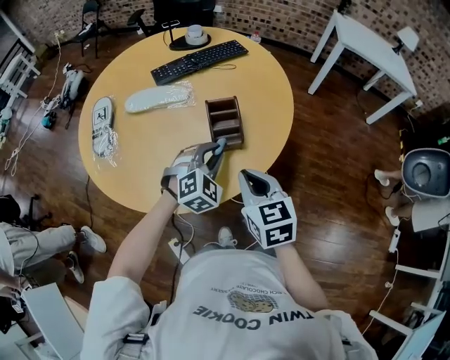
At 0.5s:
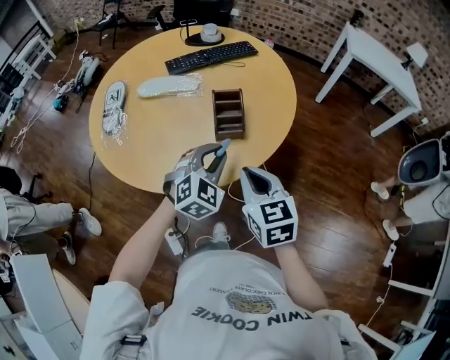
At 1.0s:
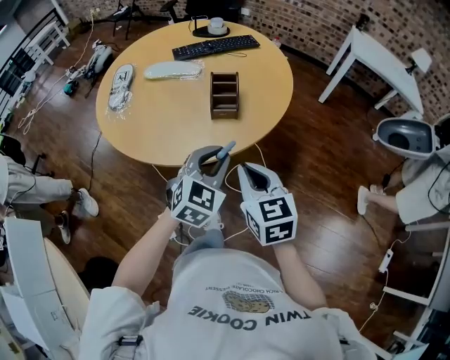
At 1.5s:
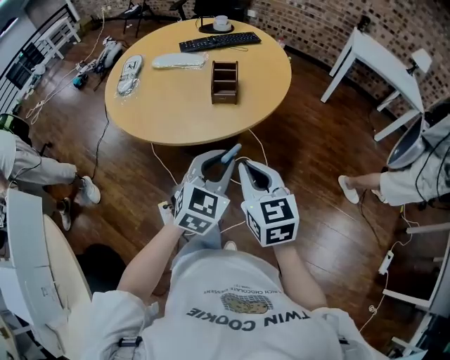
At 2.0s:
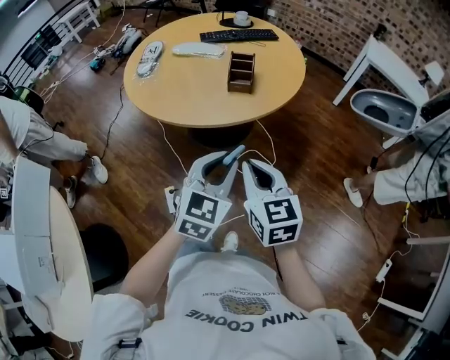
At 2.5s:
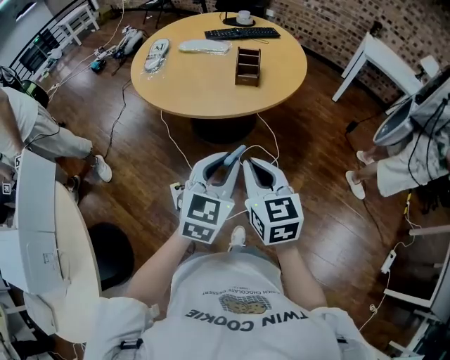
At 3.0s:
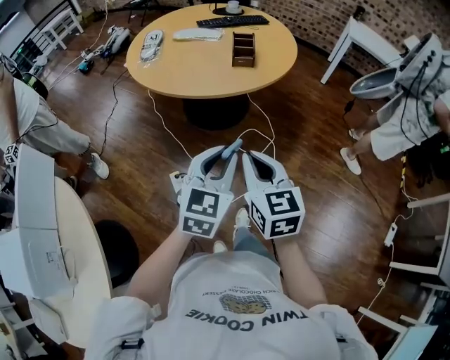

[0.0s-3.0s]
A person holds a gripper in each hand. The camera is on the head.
0.0s to 1.5s: The grippers both shift backward by roughly 25 cm. The left gripper turns by approximately 30 degrees.
1.5s to 3.0s: Both grippers move backward and to the left, about 25 cm.

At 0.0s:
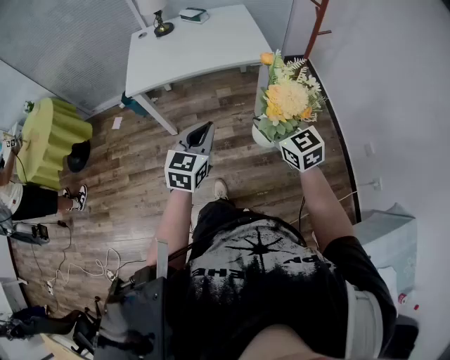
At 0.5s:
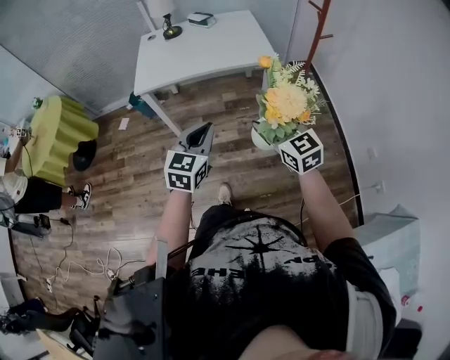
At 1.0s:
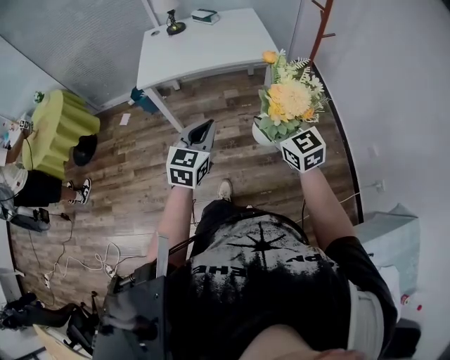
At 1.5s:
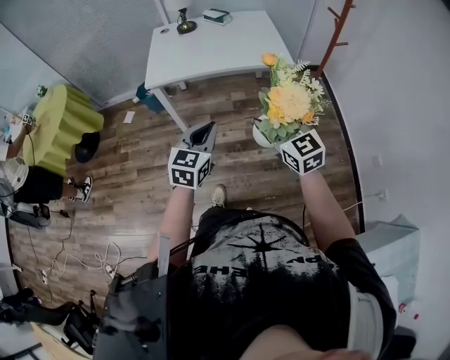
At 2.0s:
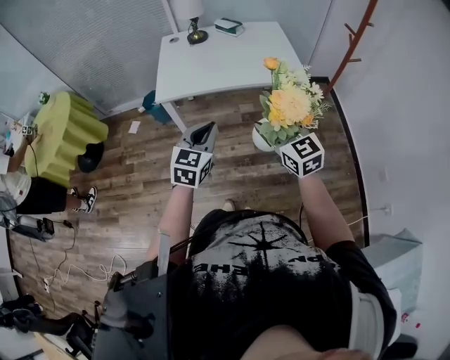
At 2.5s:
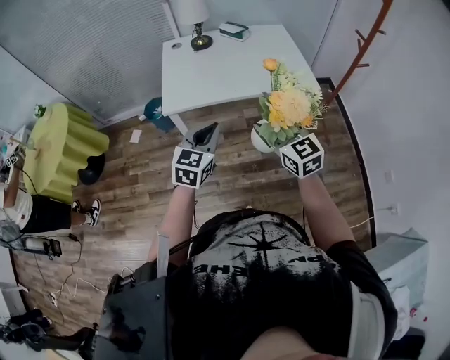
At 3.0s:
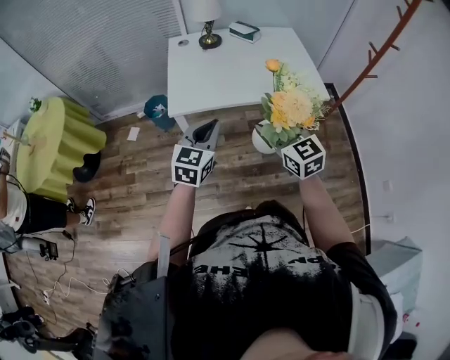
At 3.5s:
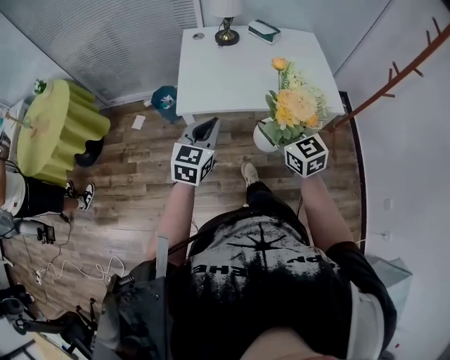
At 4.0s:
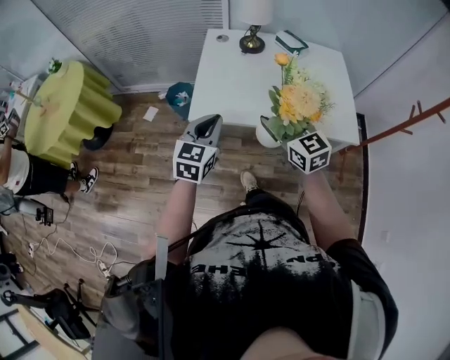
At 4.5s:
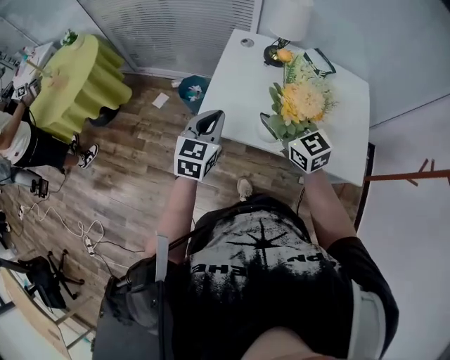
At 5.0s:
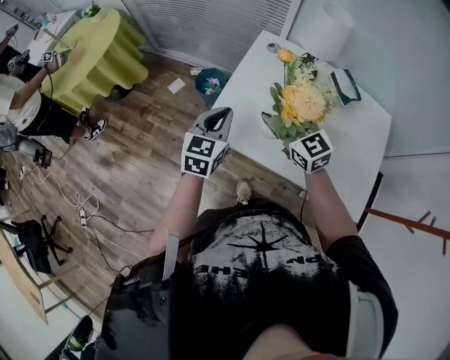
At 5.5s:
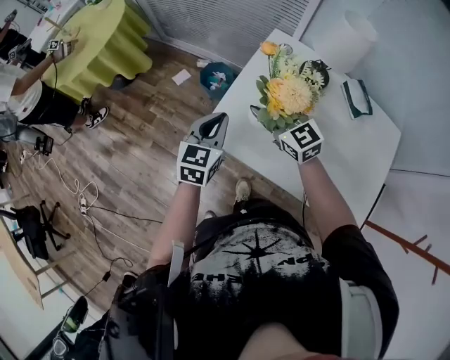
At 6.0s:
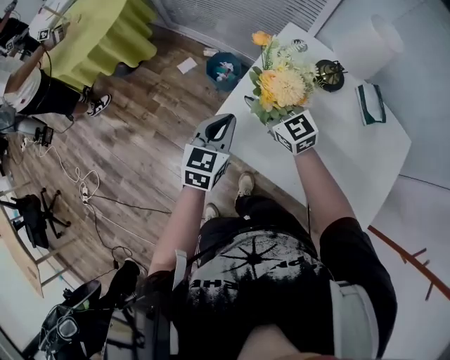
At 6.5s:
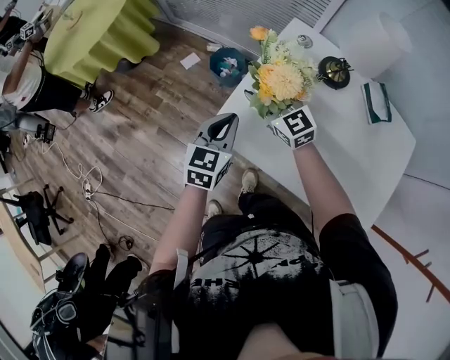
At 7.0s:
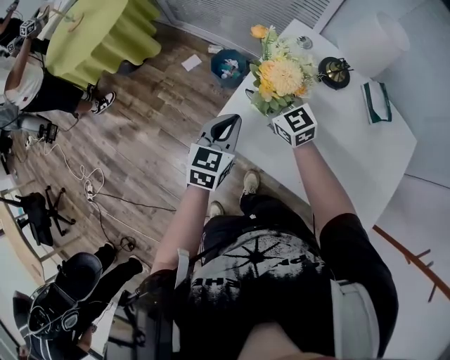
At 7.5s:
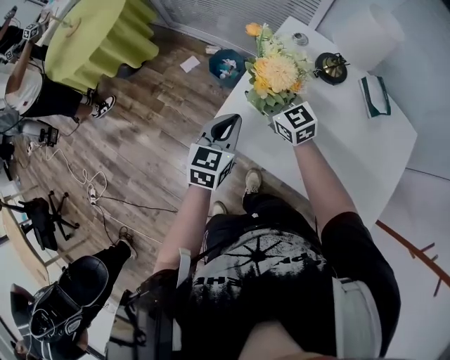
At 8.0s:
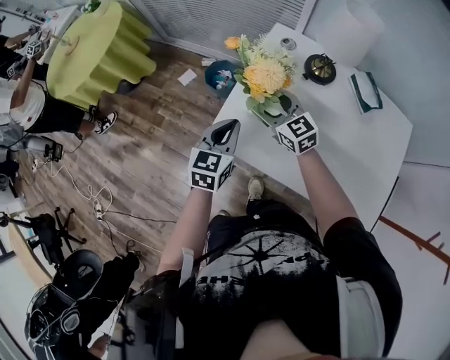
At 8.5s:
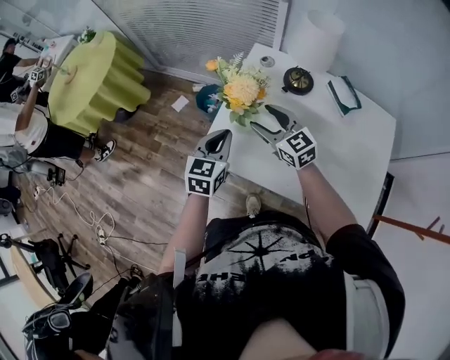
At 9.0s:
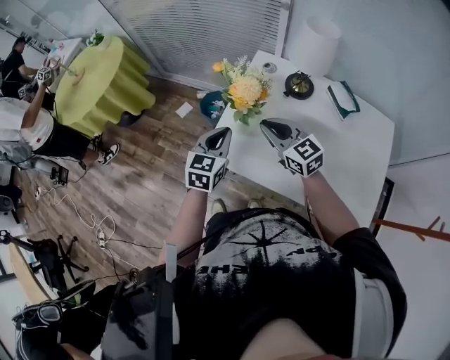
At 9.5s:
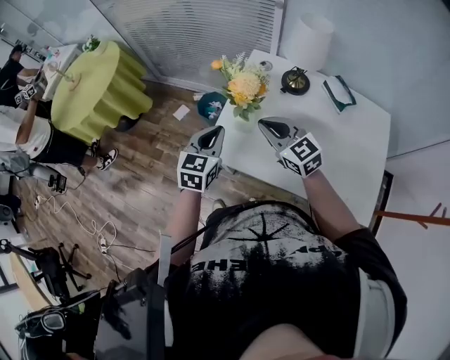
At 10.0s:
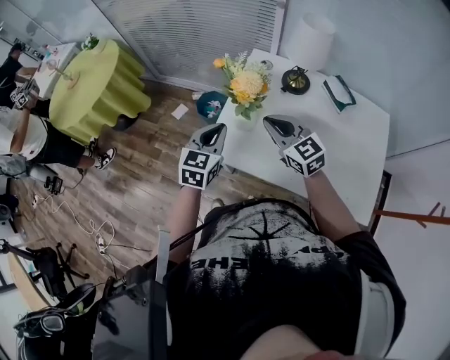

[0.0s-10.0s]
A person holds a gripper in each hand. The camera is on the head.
0.0s to 2.0s: The two grippers go approximately 15 cm to the left and forward.
2.0s to 4.0s: Both grippers travel together forward and to the left, about 30 cm.
4.0s to 6.0s: The right gripper changes place by some 35 cm, and turns by approximately 40 degrees. Meanwhile the left gripper shifts by some 20 cm, and swivels about 30 degrees.
6.0s to 8.0s: The right gripper moves some 5 cm.
8.0s to 10.0s: The left gripper heads upward, covering some 5 cm. The right gripper travels upward and backward by approximately 15 cm, and closes.

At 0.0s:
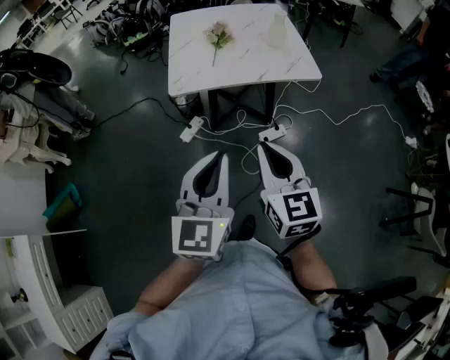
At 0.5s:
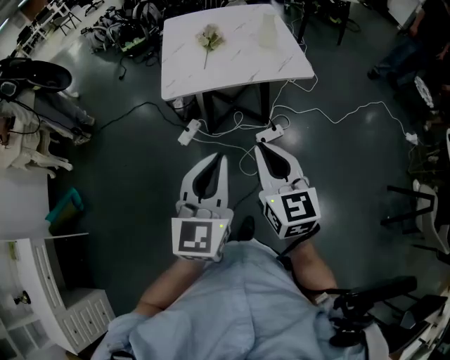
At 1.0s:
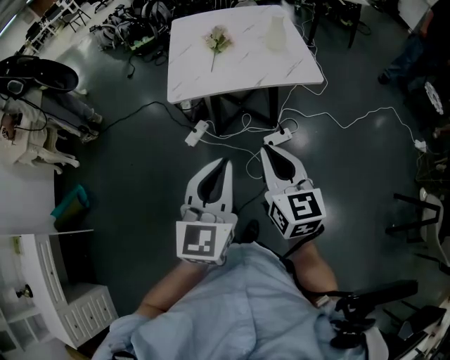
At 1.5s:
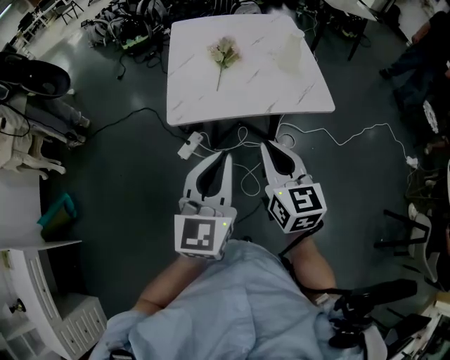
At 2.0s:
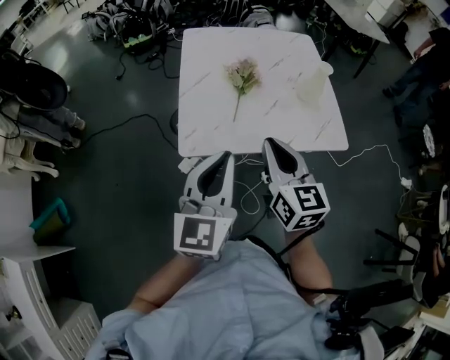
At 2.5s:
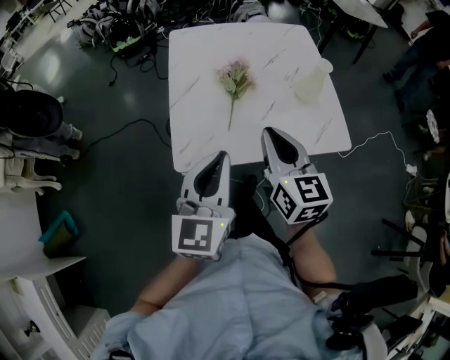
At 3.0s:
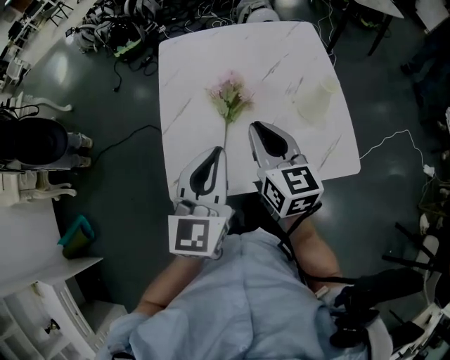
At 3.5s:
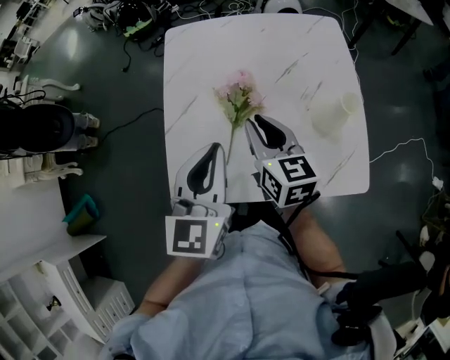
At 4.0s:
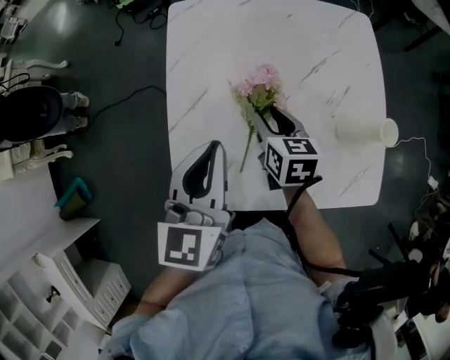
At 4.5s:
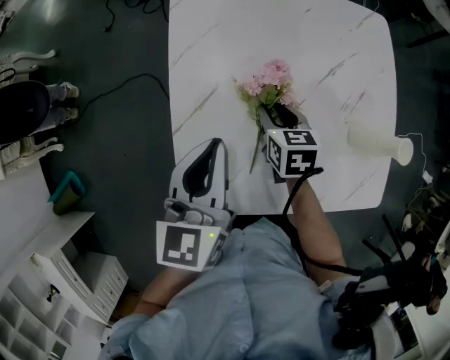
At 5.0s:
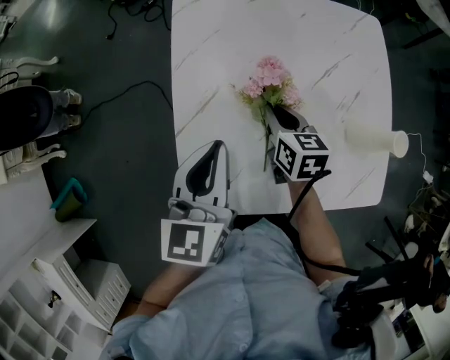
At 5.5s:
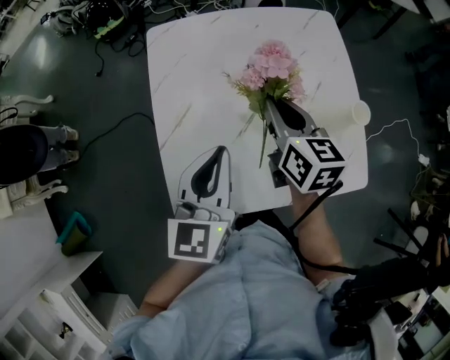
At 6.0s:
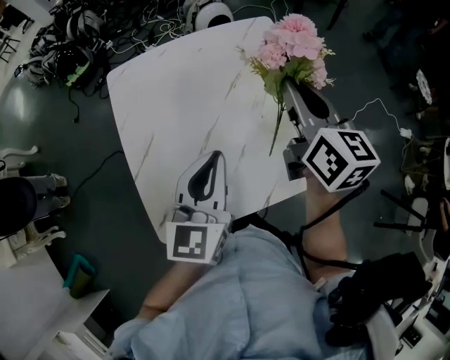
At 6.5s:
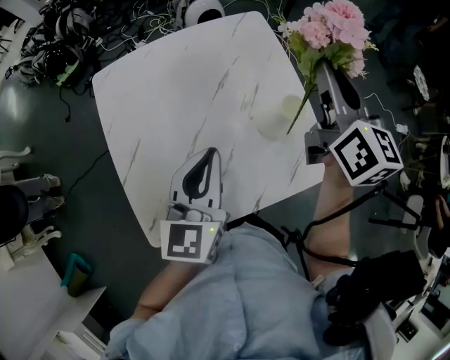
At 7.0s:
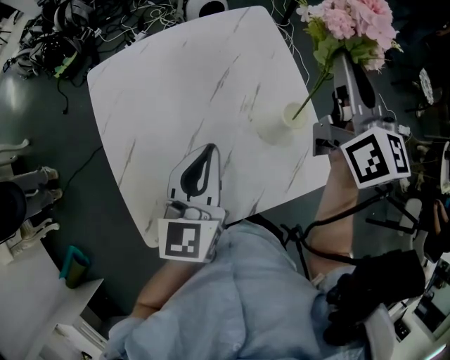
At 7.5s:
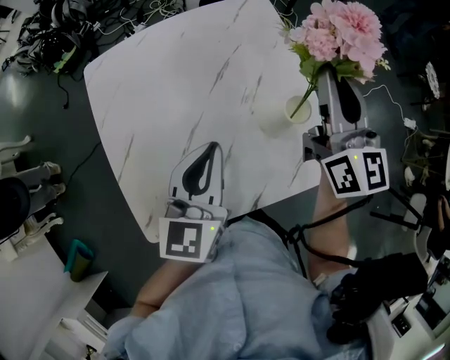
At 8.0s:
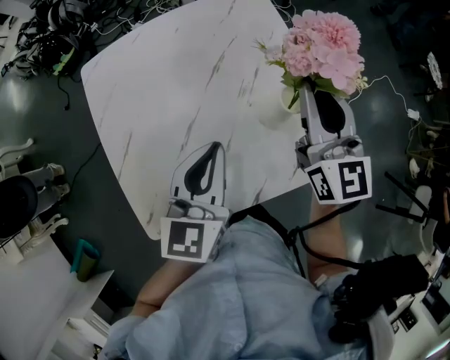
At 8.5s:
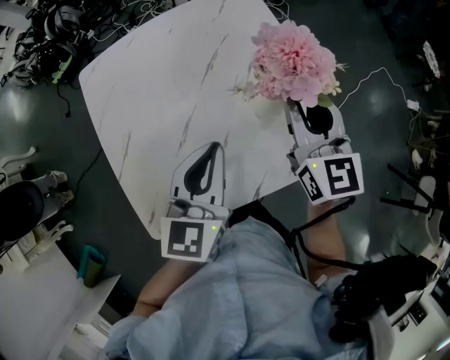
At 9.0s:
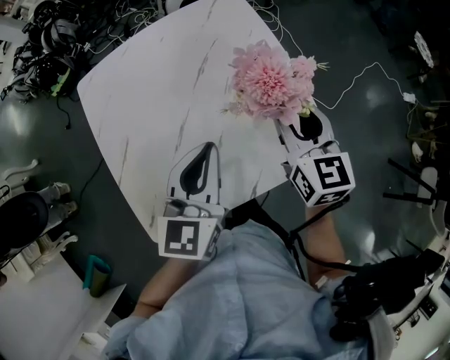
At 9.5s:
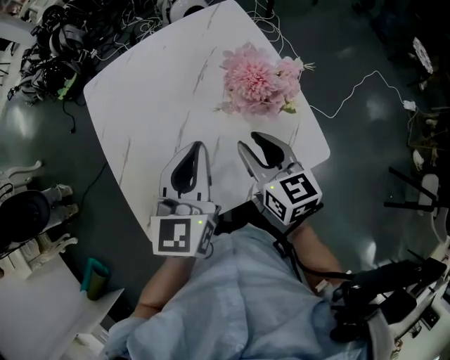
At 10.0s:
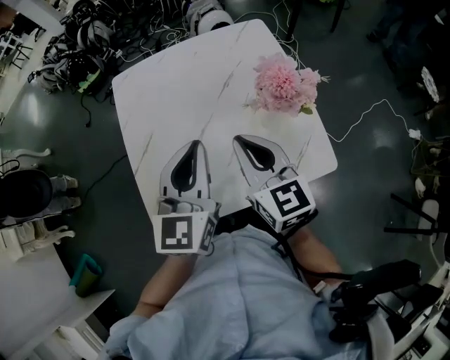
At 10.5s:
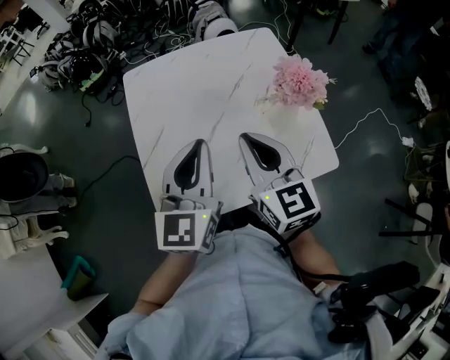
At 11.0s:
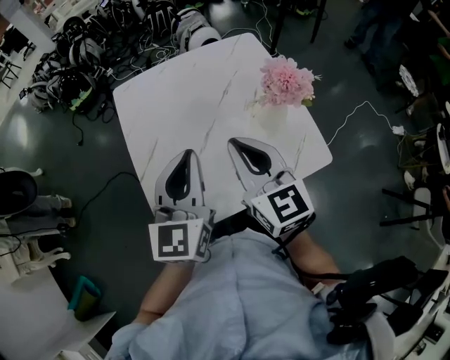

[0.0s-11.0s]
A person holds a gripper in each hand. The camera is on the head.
0.0s to 2.0s: The two grippers go roughly 30 cm forward.
2.0s to 3.5s: Both grippers move forward, roughly 25 cm.
3.5s to 5.5s: The right gripper is displaced forward by approximately 10 cm, reaches about 15 cm downward, then returns, and opens and closes again.
5.5s to 7.5s: The left gripper moves to the right and forward, approximately 15 cm; the right gripper shifts roughly 25 cm to the right and upward, and changes its angle by some 30 degrees.
7.5s to 9.0s: The right gripper is displaced downward and backward by approximately 15 cm, changes its angle by about 20 degrees, and opens.
9.0s to 11.0s: The right gripper is displaced to the left, backward and upward by roughly 25 cm, changes its angle by roughly 20 degrees, and closes its fingers. The left gripper travels to the left, upward and backward by approximately 15 cm.

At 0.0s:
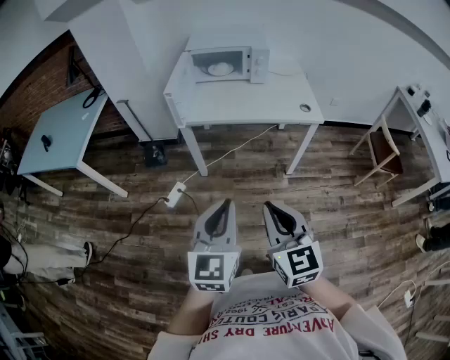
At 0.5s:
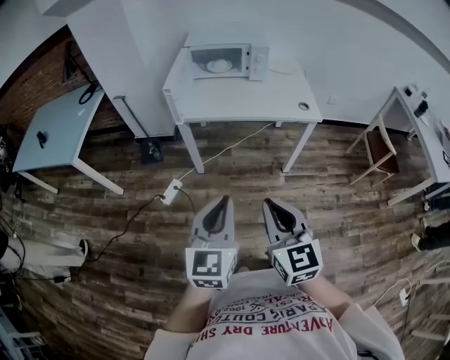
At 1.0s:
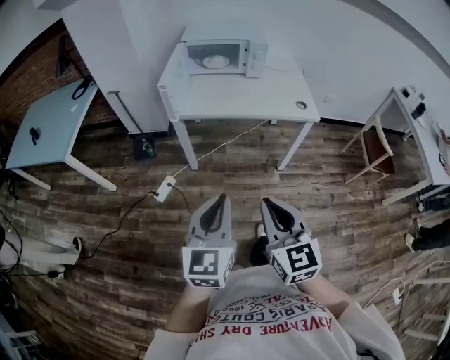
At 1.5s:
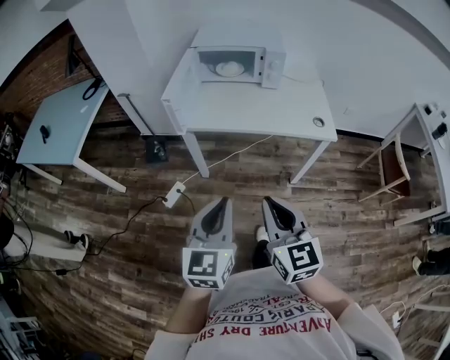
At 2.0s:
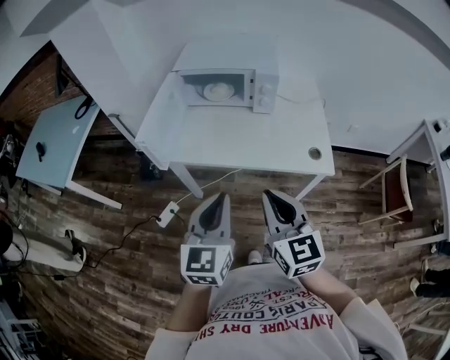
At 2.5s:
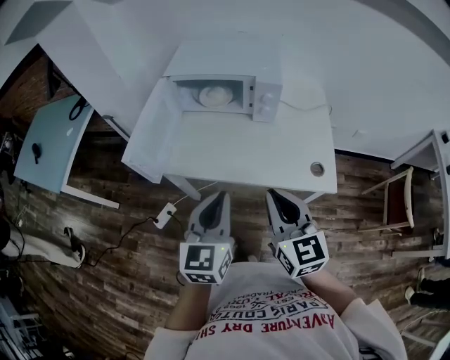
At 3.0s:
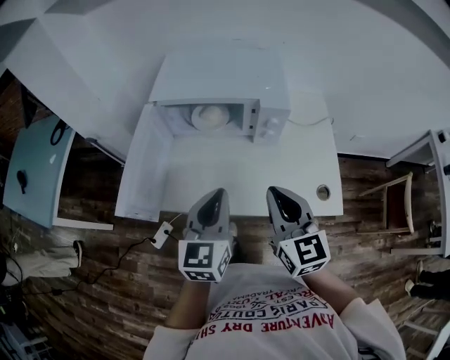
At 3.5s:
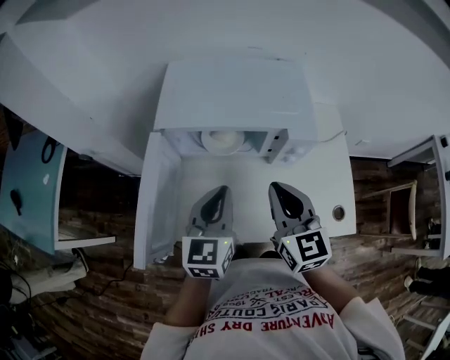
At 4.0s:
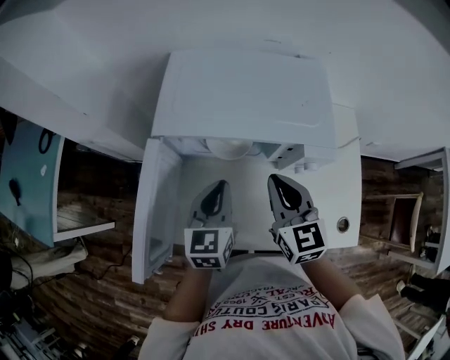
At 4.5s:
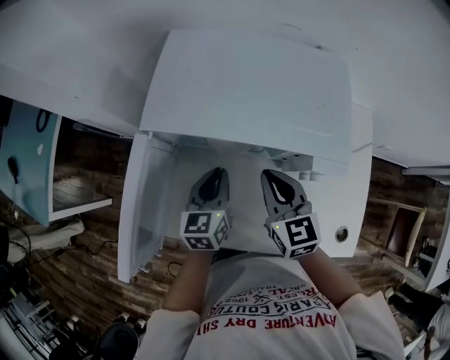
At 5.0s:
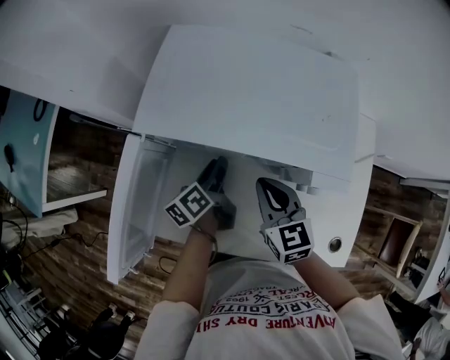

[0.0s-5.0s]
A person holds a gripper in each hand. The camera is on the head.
0.0s to 2.5s: The pair of grippers is taken forward, approximately 40 cm.
2.5s to 5.0s: The right gripper moves forward, some 40 cm, and changes its angle by about 20 degrees. Meanwhile the left gripper is displaced forward and downward by about 50 cm, rotates around the line of its fingers by about 60 degrees, counterclockwise from behind, and opens up.
